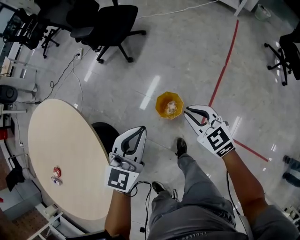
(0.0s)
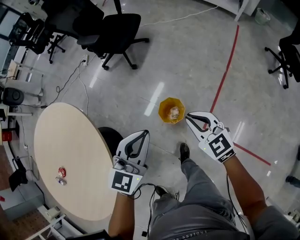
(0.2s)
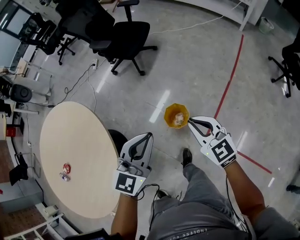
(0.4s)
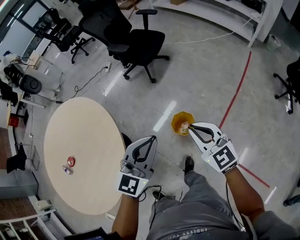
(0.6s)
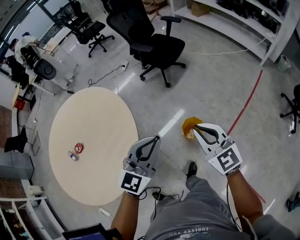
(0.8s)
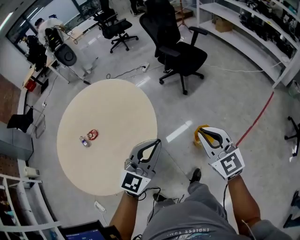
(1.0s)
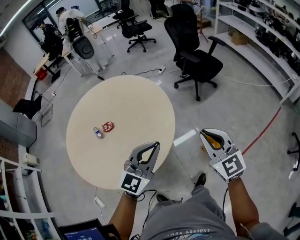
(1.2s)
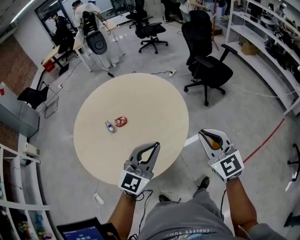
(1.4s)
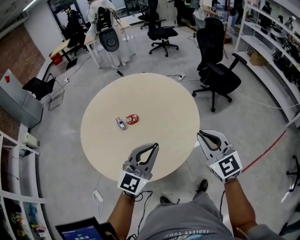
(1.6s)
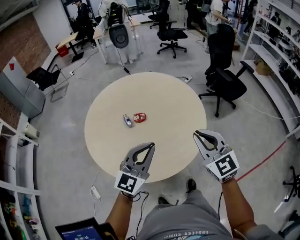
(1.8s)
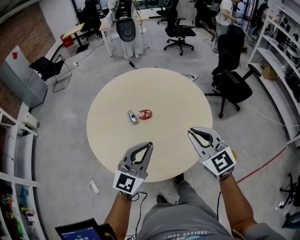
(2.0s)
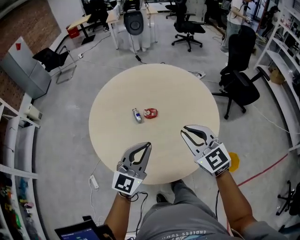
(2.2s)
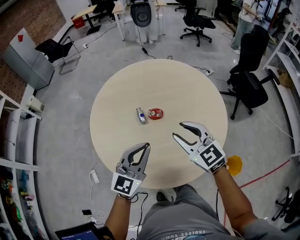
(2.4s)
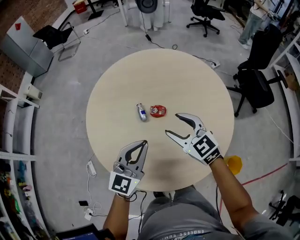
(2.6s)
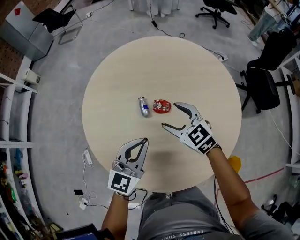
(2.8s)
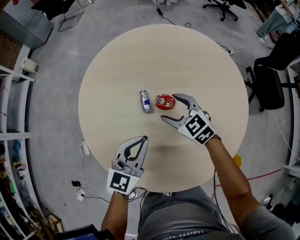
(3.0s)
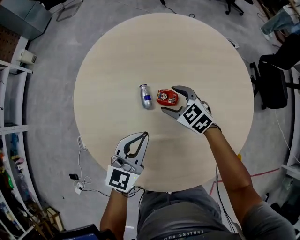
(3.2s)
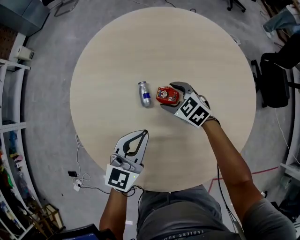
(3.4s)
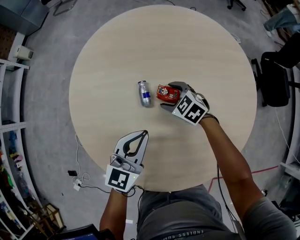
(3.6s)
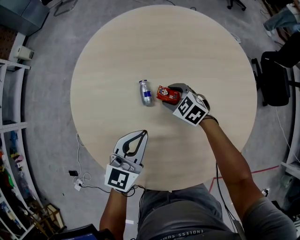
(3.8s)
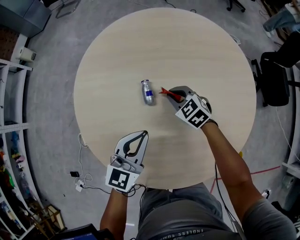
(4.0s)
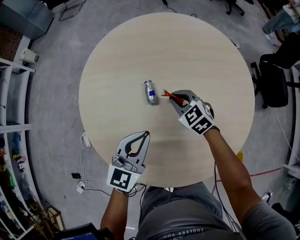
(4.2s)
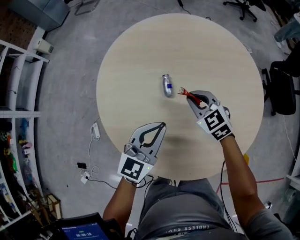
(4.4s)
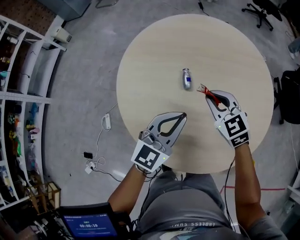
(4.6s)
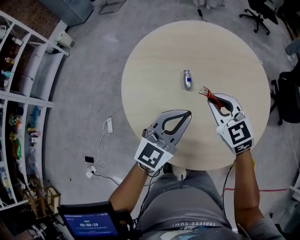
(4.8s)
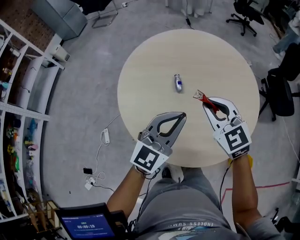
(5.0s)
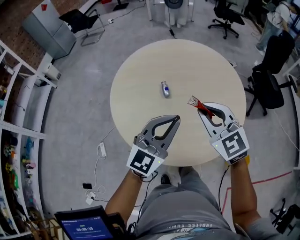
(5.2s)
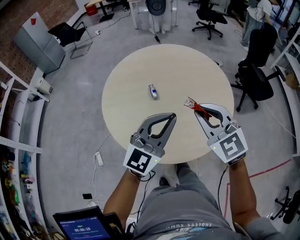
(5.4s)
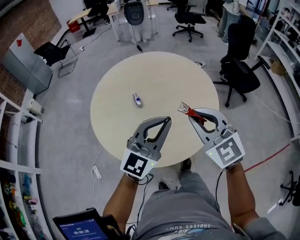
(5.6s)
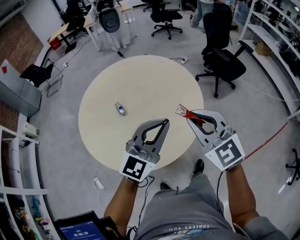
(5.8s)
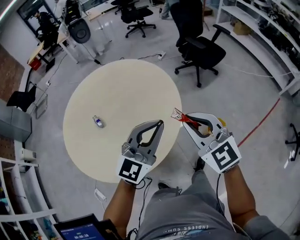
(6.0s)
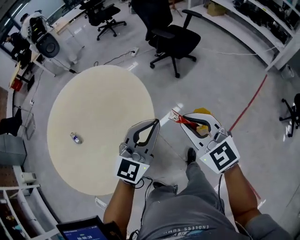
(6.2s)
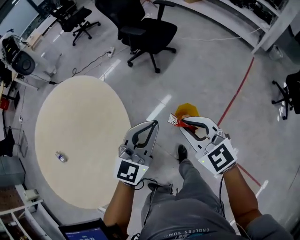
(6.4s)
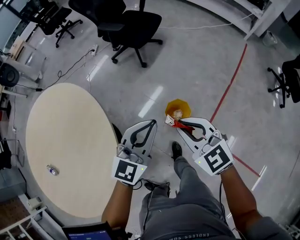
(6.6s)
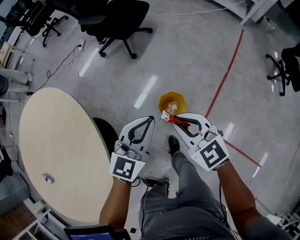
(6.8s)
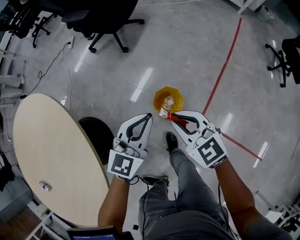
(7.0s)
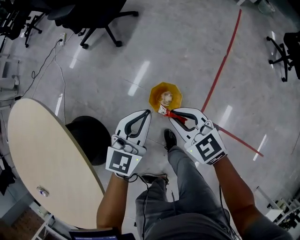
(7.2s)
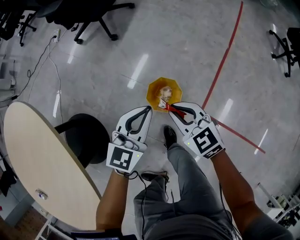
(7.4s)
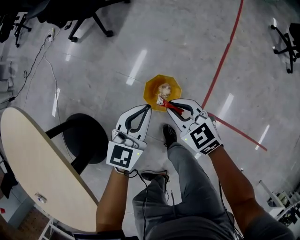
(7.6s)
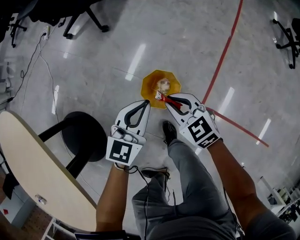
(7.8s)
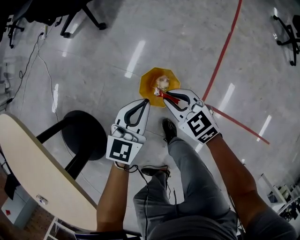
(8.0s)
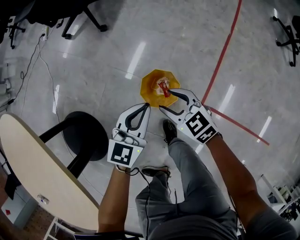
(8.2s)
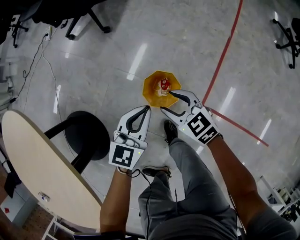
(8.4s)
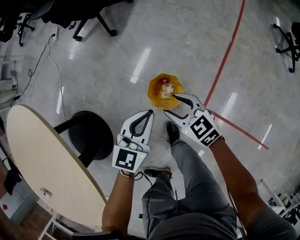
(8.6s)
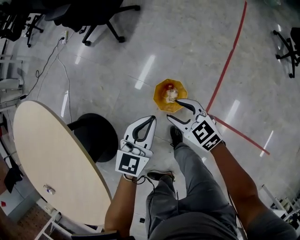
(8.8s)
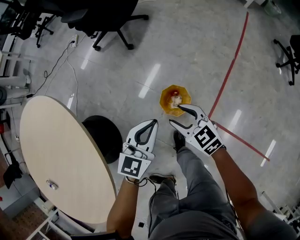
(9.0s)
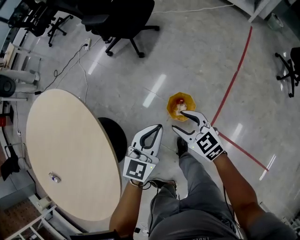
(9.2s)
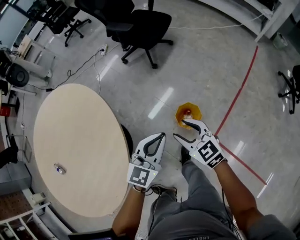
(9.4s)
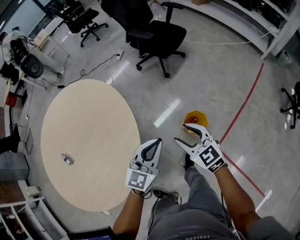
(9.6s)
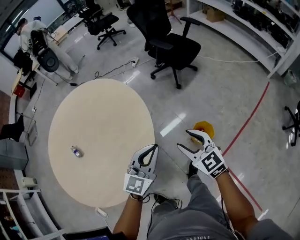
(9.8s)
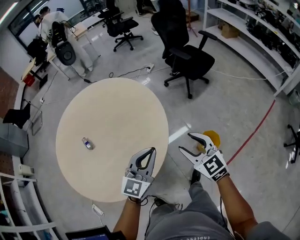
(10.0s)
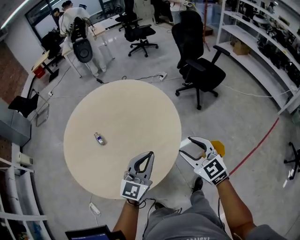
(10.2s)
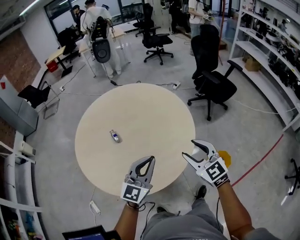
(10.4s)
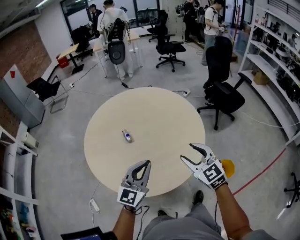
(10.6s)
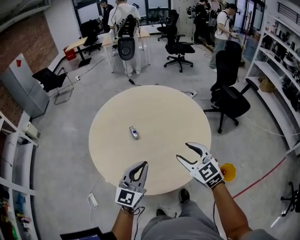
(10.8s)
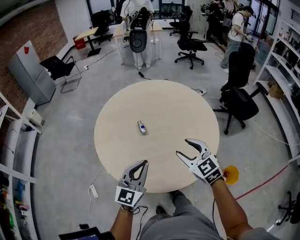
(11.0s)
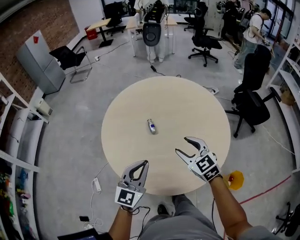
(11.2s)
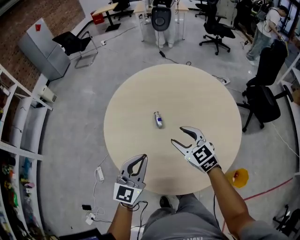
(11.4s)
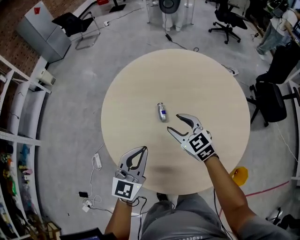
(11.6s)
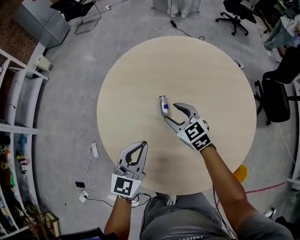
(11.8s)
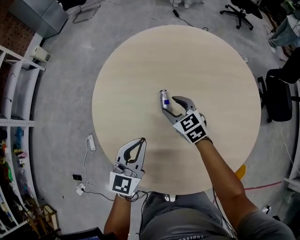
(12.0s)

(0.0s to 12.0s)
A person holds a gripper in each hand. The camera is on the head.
0.0s - 1.6s: The pair of grippers is taken about 60 cm. The right gripper swivels some 40 degrees, while the left gripper turns by approximately 40 degrees.
1.6s - 3.0s: The right gripper shifts by roughly 60 cm, swivels roughly 50 degrees, and opens up. Meanwhile the left gripper moves some 40 cm, and turns by roughly 40 degrees.
3.0s - 4.4s: The right gripper moves roughly 15 cm downward and comes back, and closes its fingers; the left gripper moves some 5 cm downward and comes back.
4.4s - 6.0s: The right gripper shifts by about 50 cm, and swivels roughly 40 degrees. Meanwhile the left gripper moves some 40 cm, and rotates approximately 40 degrees.
6.0s - 7.6s: Both grippers are carried about 50 cm. The right gripper heads downward, covering roughly 60 cm, and turns by some 50 degrees. The left gripper changes its angle by about 40 degrees.
7.6s - 9.0s: Both grippers travel together upward, approximately 10 cm. The right gripper opens up.
9.0s - 10.4s: Both grippers are carried approximately 60 cm. The right gripper rotates some 40 degrees. Meanwhile the left gripper turns by about 50 degrees.
10.4s - 12.0s: The left gripper shifts by roughly 40 cm, and rotates roughly 40 degrees; the right gripper changes place by some 60 cm, and swivels about 40 degrees.

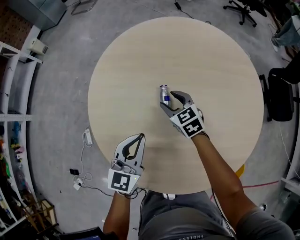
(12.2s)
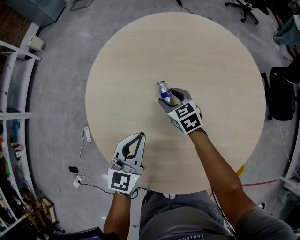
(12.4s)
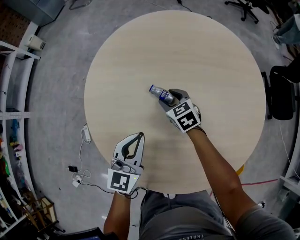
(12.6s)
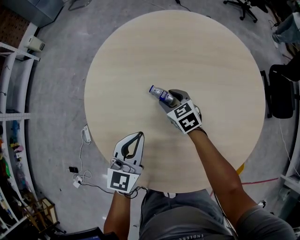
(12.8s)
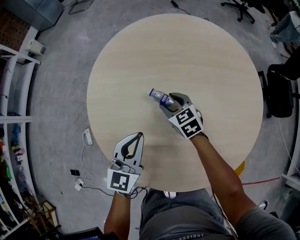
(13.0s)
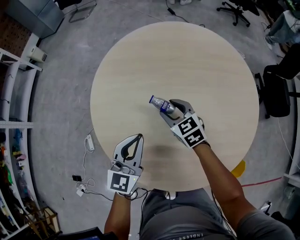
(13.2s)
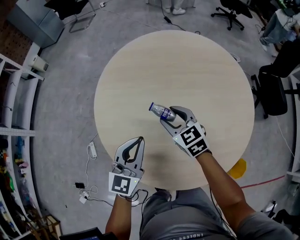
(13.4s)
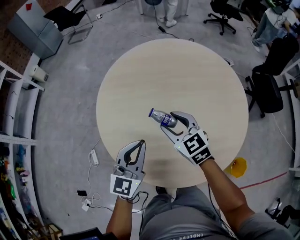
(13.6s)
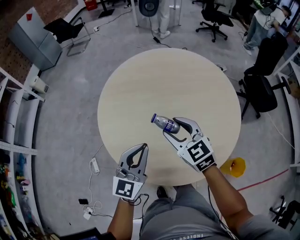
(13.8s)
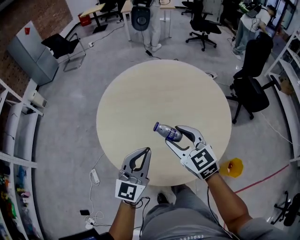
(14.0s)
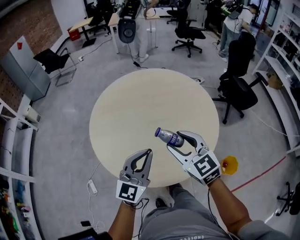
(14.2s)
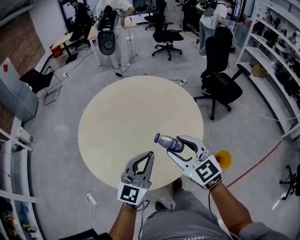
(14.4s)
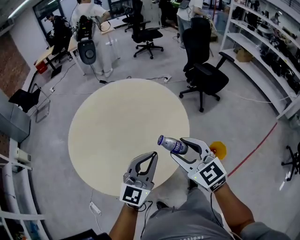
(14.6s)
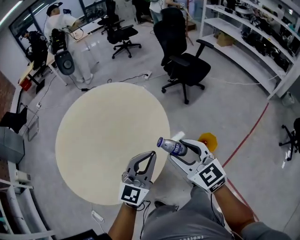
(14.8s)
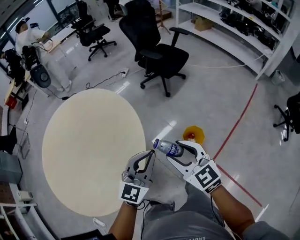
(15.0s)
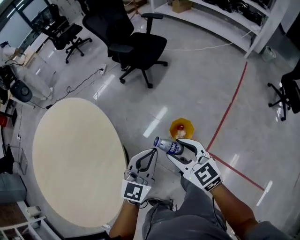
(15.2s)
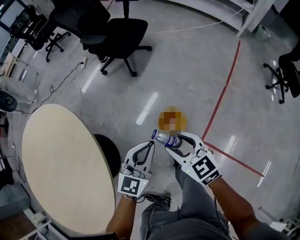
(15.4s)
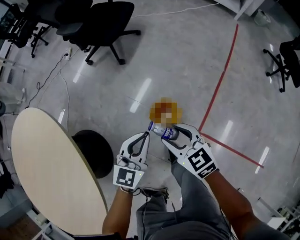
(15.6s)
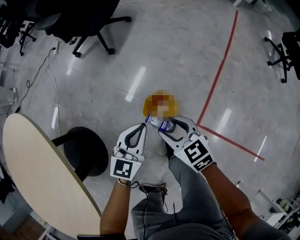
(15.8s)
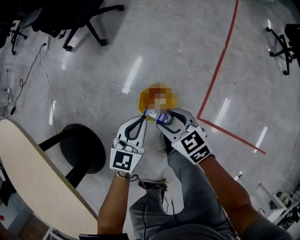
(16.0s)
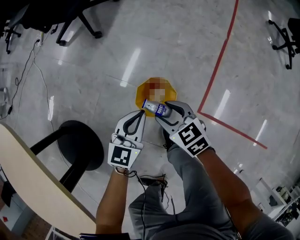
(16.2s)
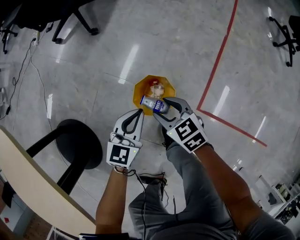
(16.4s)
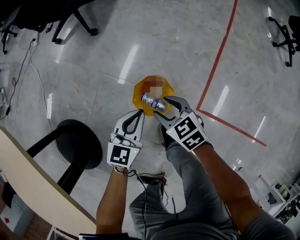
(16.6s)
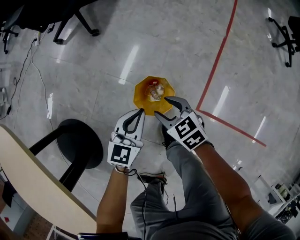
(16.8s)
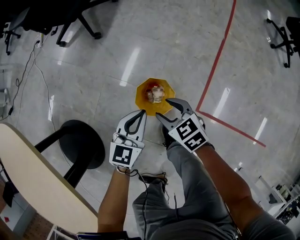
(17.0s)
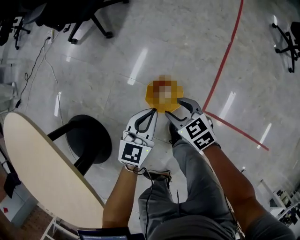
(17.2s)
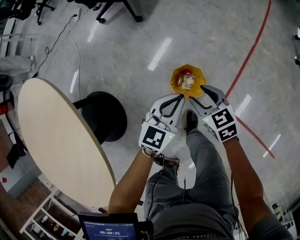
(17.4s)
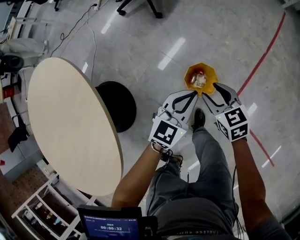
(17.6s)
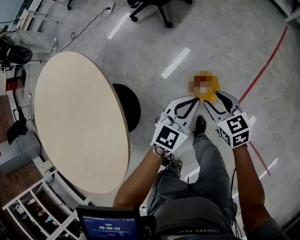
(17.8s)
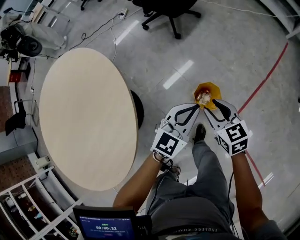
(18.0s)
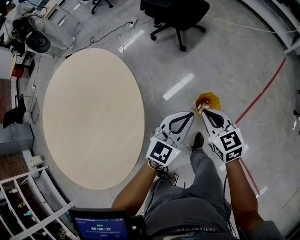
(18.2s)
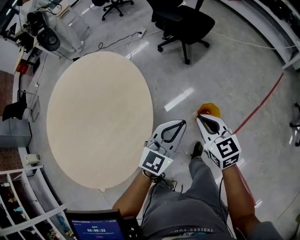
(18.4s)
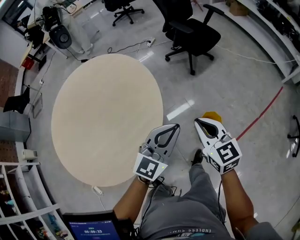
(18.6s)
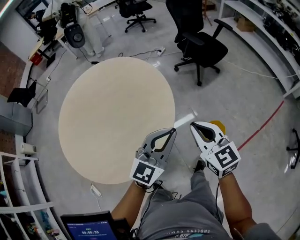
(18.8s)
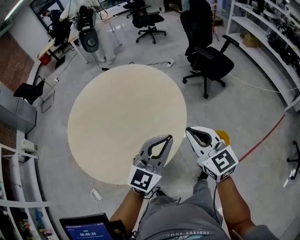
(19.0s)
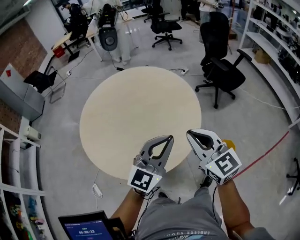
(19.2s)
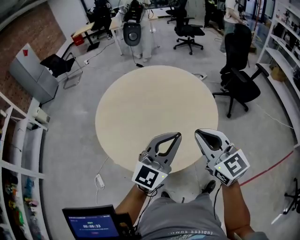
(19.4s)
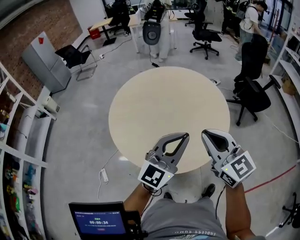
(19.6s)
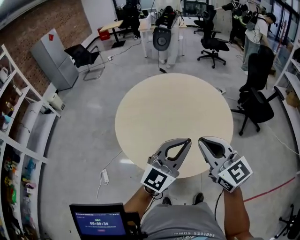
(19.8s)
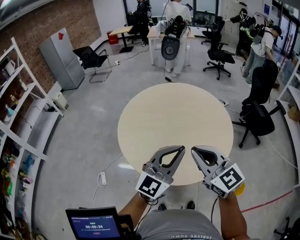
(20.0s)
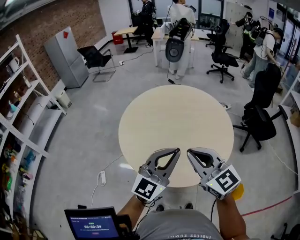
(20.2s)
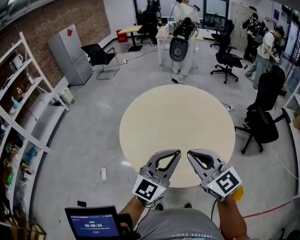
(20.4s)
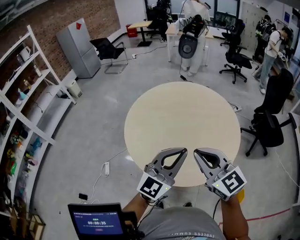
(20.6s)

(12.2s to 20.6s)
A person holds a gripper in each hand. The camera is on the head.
12.2s - 13.6s: The right gripper goes roughly 20 cm upward and backward, while the left gripper shifts roughly 10 cm upward and backward.
13.6s - 15.0s: The pair of grippers is taken about 60 cm. The left gripper swivels roughly 50 degrees. Meanwhile the right gripper rotates some 50 degrees.
15.0s - 16.4s: Both grippers move downward, to the right and forward, approximately 70 cm. The right gripper rotates some 40 degrees. Meanwhile the left gripper rotates about 40 degrees.
16.4s - 17.8s: Both grippers move upward, about 25 cm.
17.8s - 19.2s: The two grippers travel together, some 60 cm. The left gripper turns by approximately 40 degrees. Meanwhile the right gripper points its fingers some 30 degrees further upward, and closes.
19.2s - 20.6s: The right gripper ends up some 25 cm from where it was, and swivels approximately 30 degrees. Meanwhile the left gripper shifts by some 20 cm, and turns by about 20 degrees.

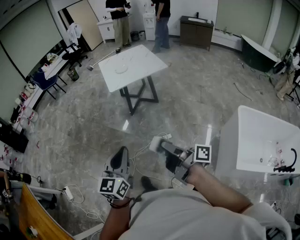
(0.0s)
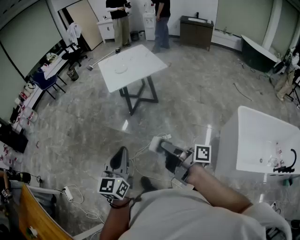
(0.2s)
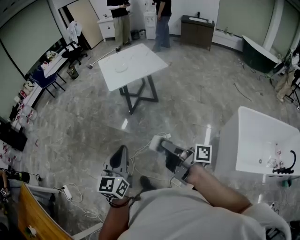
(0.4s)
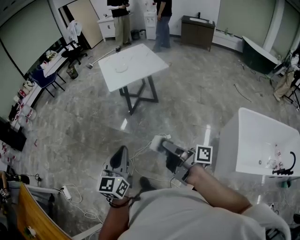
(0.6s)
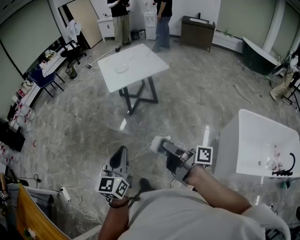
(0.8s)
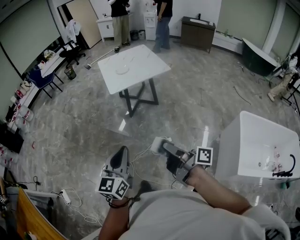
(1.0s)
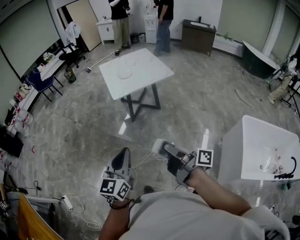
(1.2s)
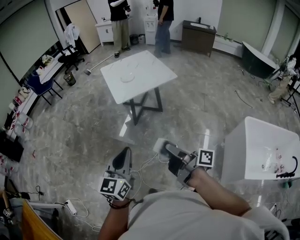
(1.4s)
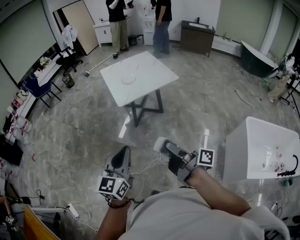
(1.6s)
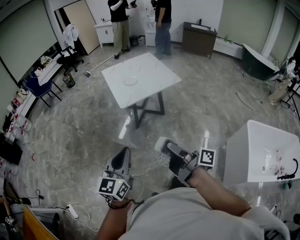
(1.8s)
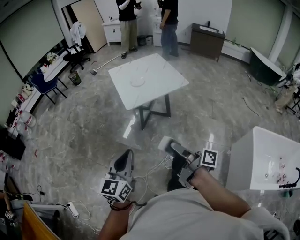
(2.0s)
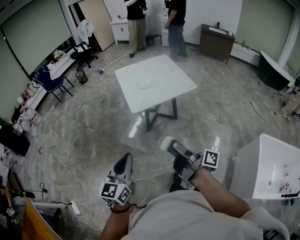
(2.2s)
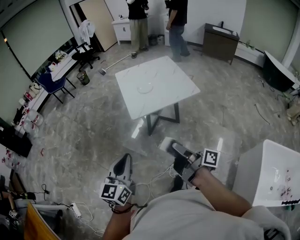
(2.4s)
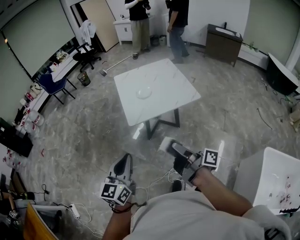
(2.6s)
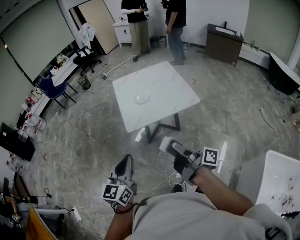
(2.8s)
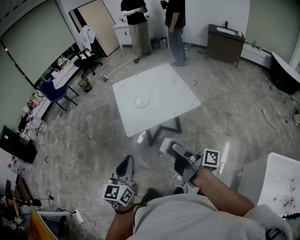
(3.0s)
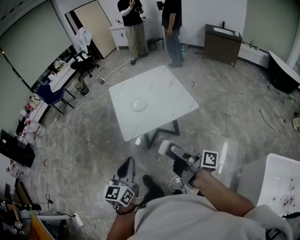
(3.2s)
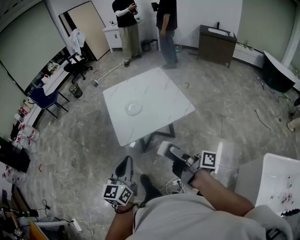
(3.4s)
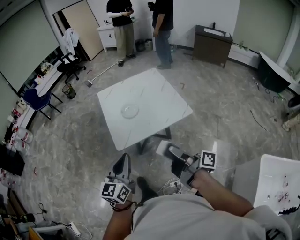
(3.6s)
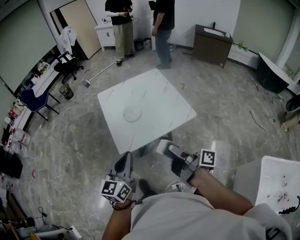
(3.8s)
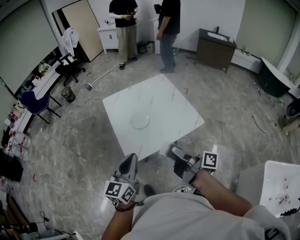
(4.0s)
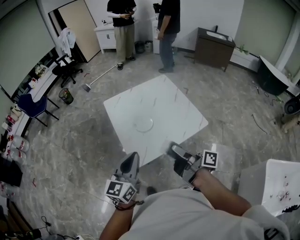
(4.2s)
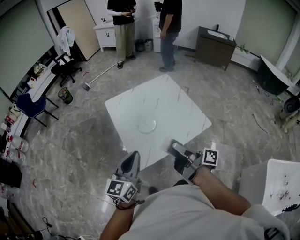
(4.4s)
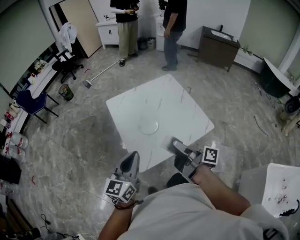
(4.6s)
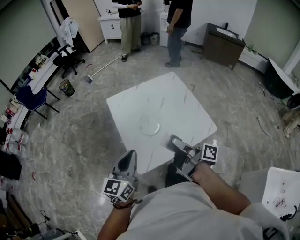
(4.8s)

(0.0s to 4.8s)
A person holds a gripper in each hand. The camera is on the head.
0.0s - 1.6s: The left gripper shifts by roughly 25 cm.
1.6s - 3.2s: The left gripper changes place by approximately 35 cm.
3.2s - 4.8s: The left gripper ends up about 40 cm from where it was.
